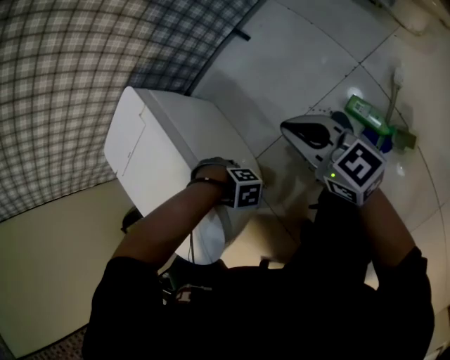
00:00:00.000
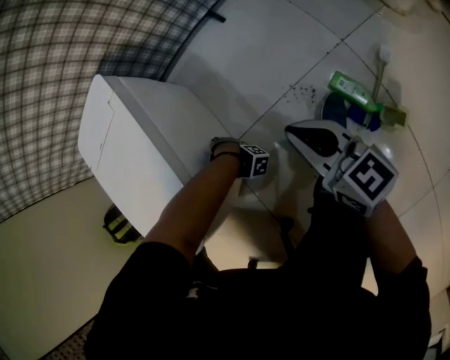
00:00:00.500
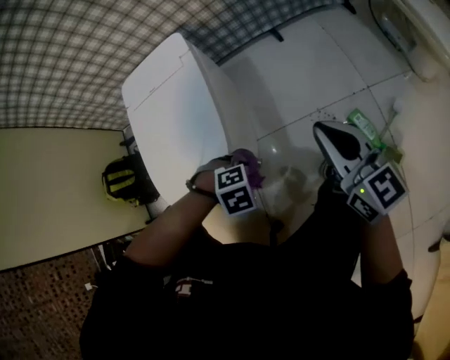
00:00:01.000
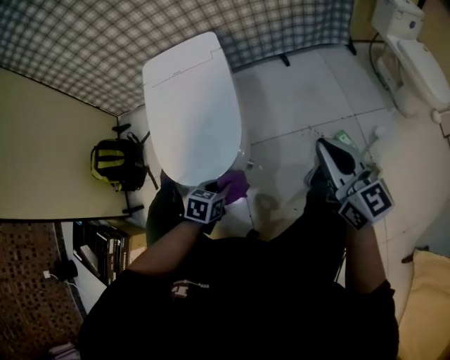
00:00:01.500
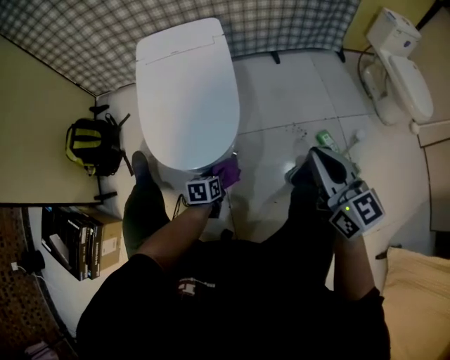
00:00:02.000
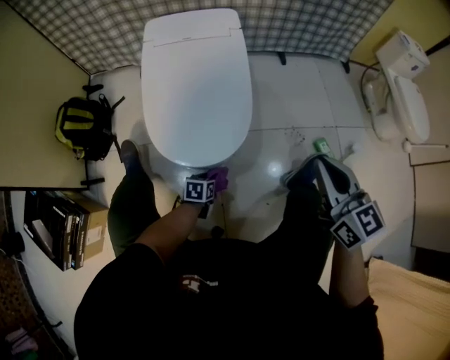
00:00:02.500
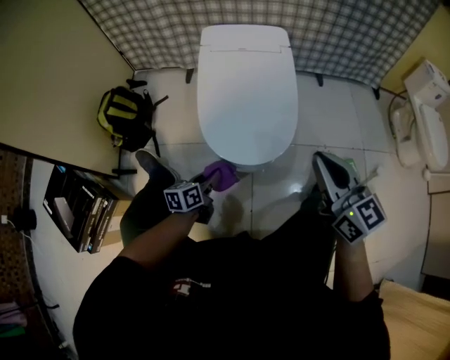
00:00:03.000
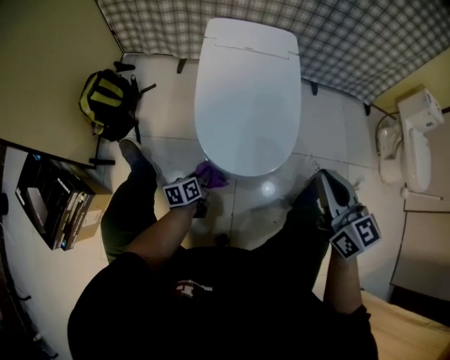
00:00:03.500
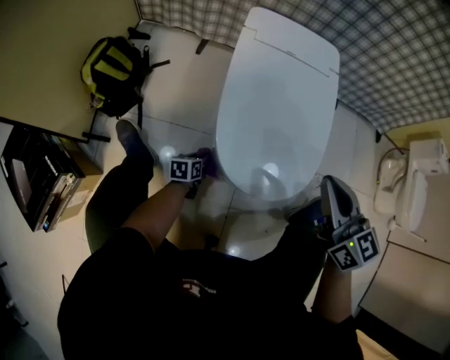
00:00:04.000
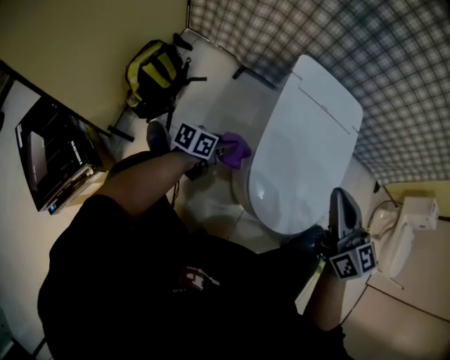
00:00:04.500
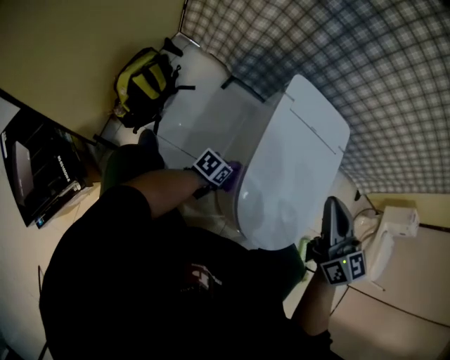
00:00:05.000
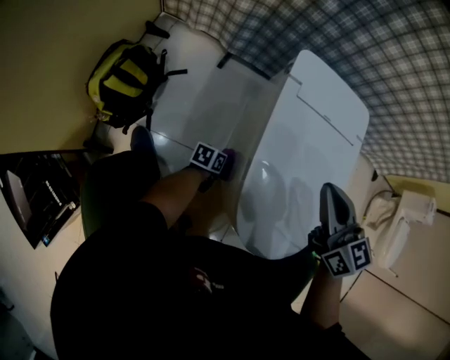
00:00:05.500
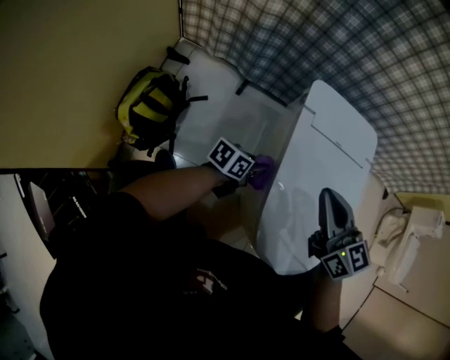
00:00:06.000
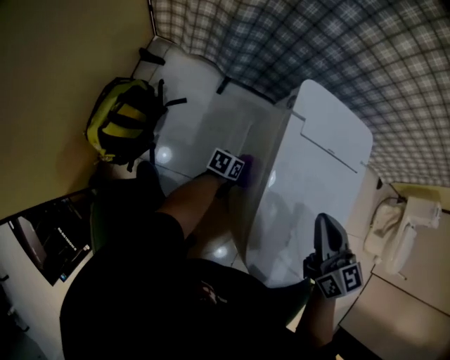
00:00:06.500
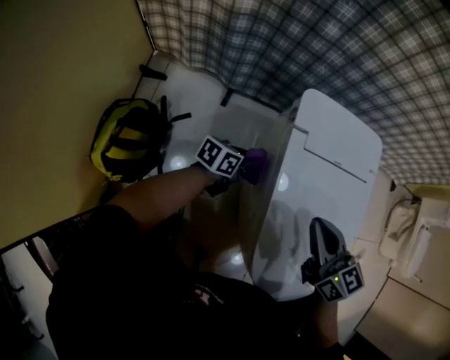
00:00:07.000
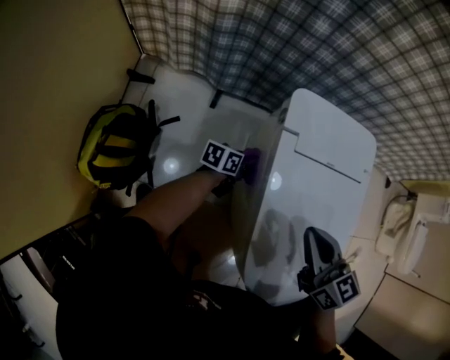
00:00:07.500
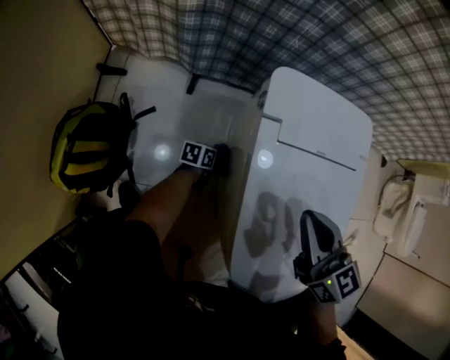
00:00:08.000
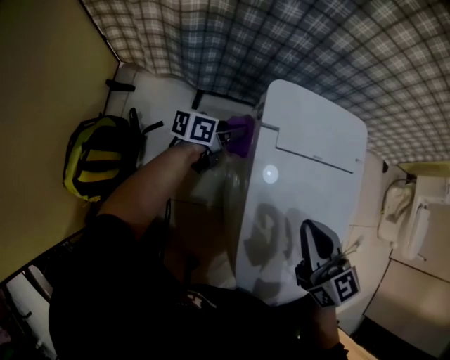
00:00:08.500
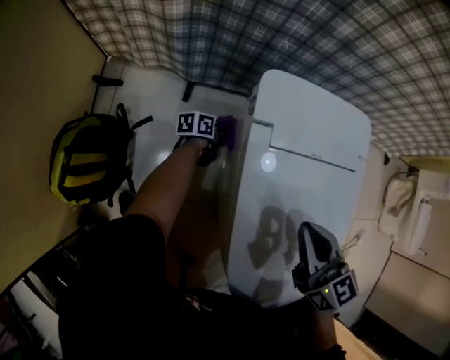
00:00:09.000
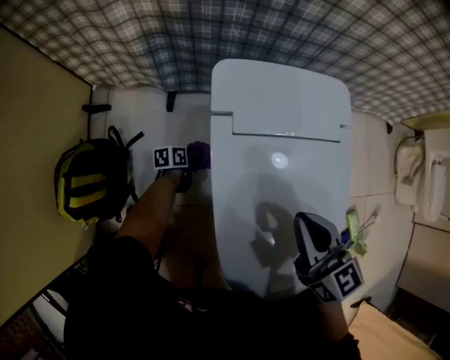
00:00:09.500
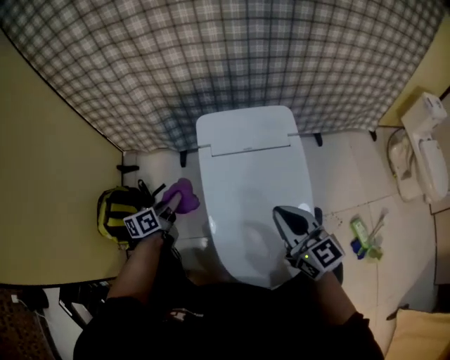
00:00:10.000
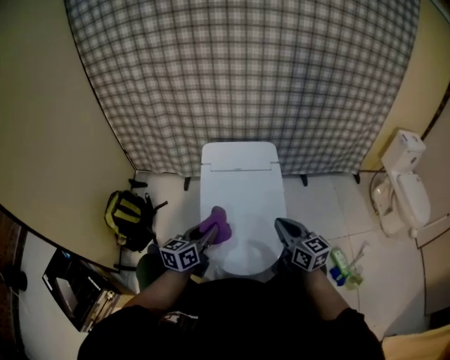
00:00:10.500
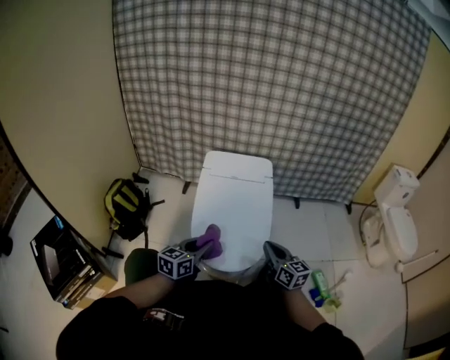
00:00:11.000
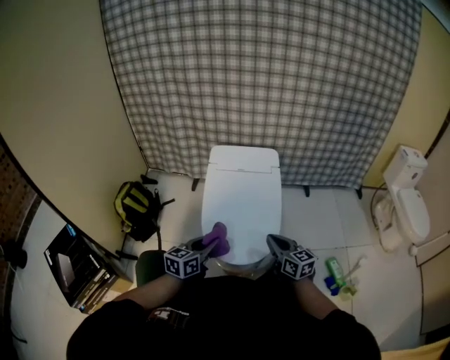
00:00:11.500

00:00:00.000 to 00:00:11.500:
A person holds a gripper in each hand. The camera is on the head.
00:00:00.000 to 00:00:02.000: The right gripper shifts by some 35 cm. Meanwhile the left gripper moves up and down over approximately 20 cm, changing direction 2 times, and turns by some 140 degrees.
00:00:02.000 to 00:00:04.000: The left gripper is displaced to the left, downward and forward by approximately 25 cm. Meanwhile the right gripper is displaced to the left and forward by about 25 cm.
00:00:04.000 to 00:00:06.000: The right gripper travels to the left and forward by about 30 cm. Meanwhile the left gripper travels forward and upward by about 25 cm, and rotates roughly 30 degrees.
00:00:06.000 to 00:00:07.500: The left gripper swings up and down, about 15 cm each way, with 2 reversals, while the right gripper goes approximately 5 cm downward.
00:00:07.500 to 00:00:09.500: The right gripper is displaced to the right by about 5 cm, while the left gripper goes up and down, roughly 25 cm each way, reversing 2 times, and swivels roughly 20 degrees.
00:00:09.500 to 00:00:11.500: The right gripper is displaced backward and to the right by some 30 cm. The left gripper is displaced backward, upward and to the right by some 60 cm, and rotates roughly 50 degrees.

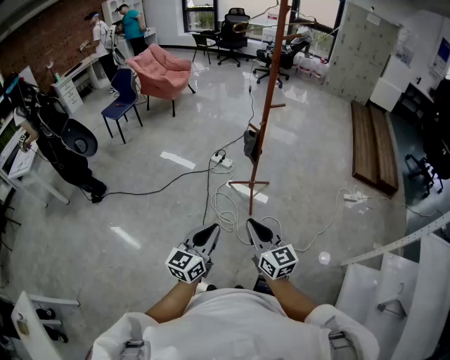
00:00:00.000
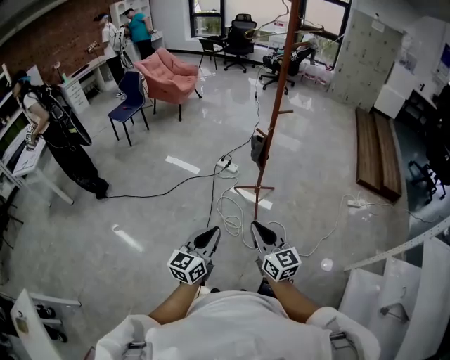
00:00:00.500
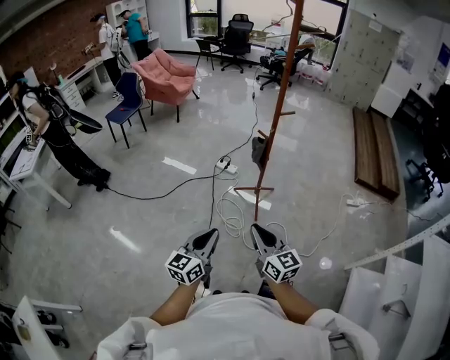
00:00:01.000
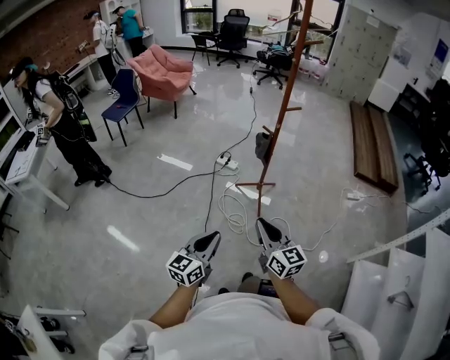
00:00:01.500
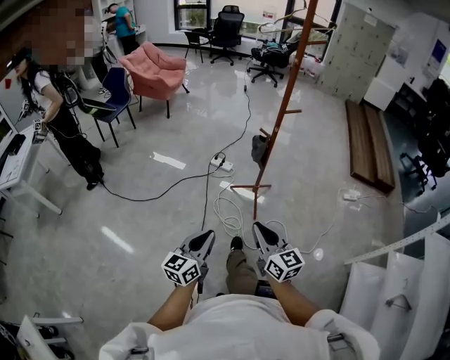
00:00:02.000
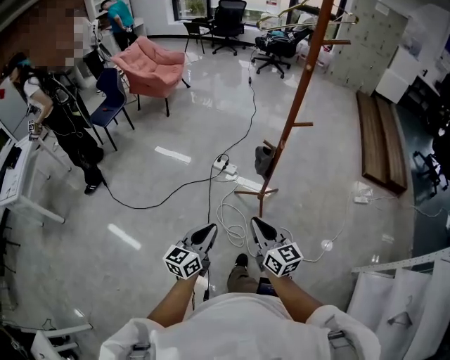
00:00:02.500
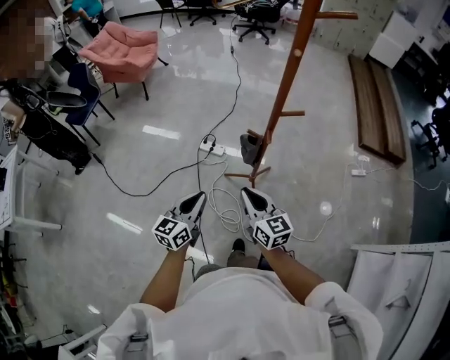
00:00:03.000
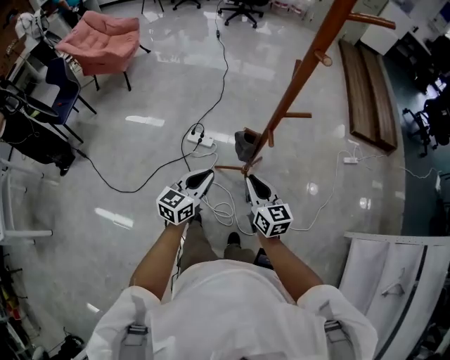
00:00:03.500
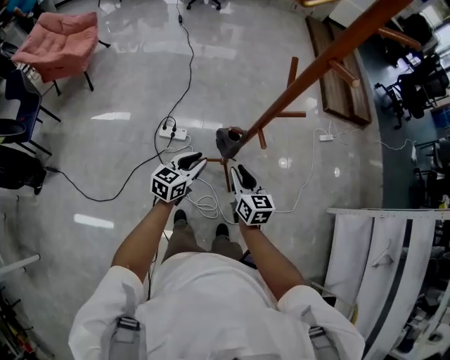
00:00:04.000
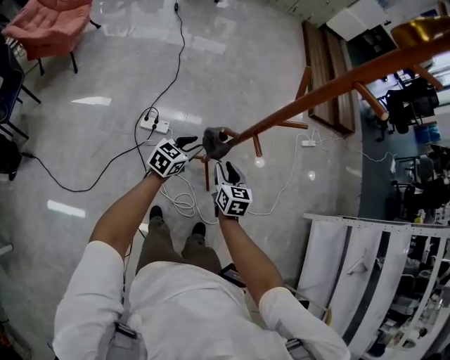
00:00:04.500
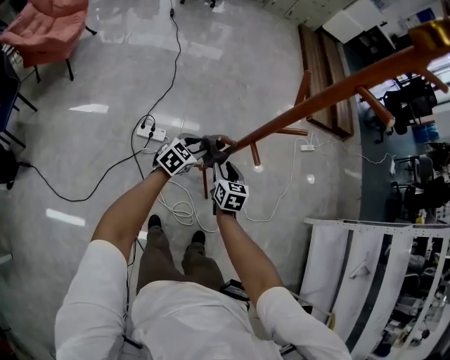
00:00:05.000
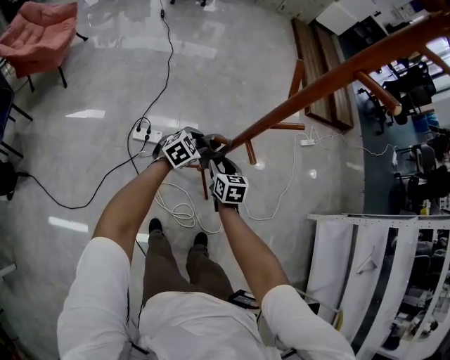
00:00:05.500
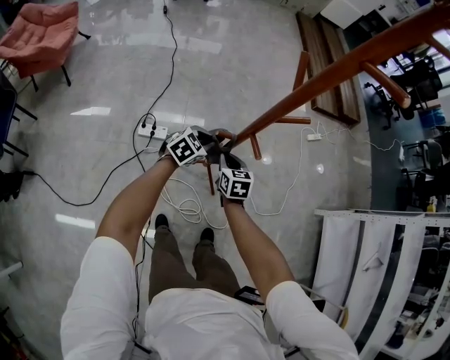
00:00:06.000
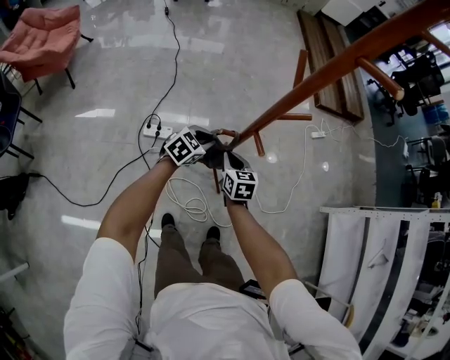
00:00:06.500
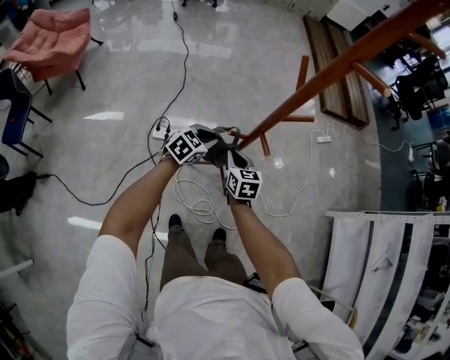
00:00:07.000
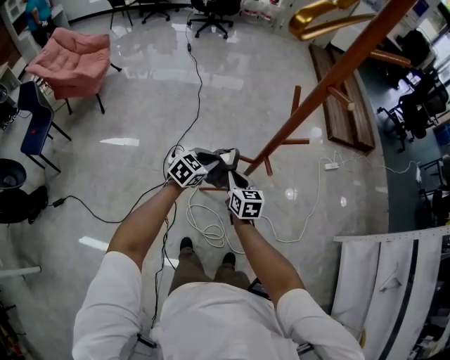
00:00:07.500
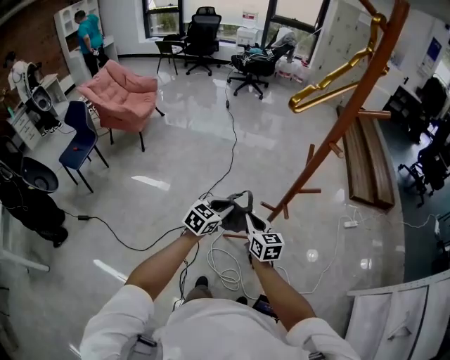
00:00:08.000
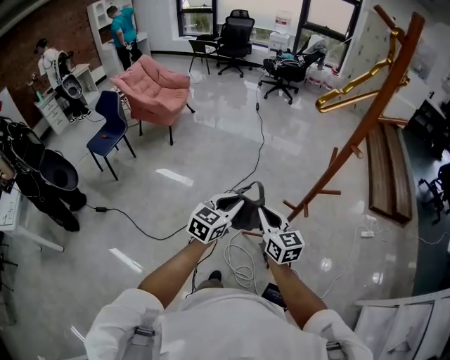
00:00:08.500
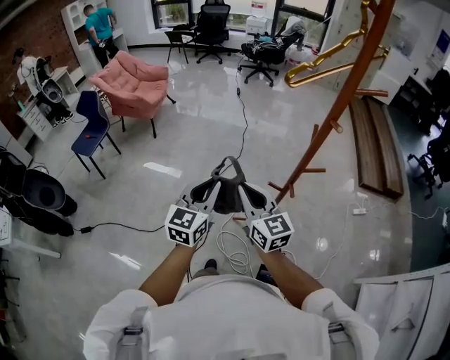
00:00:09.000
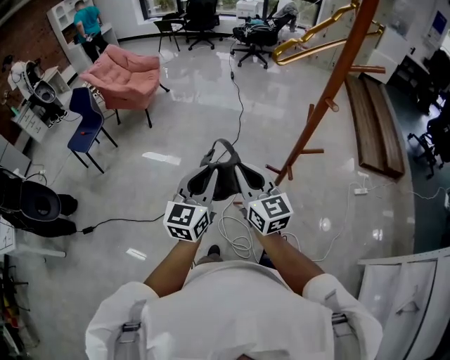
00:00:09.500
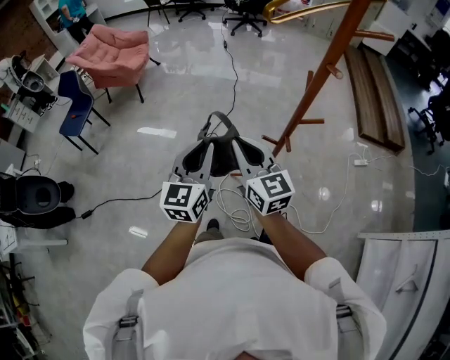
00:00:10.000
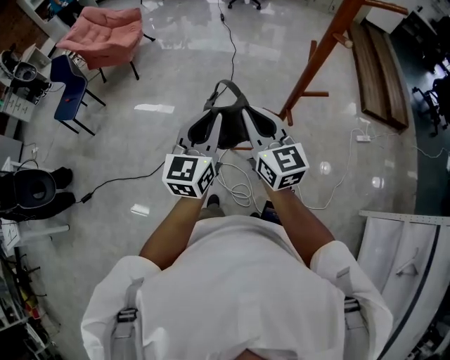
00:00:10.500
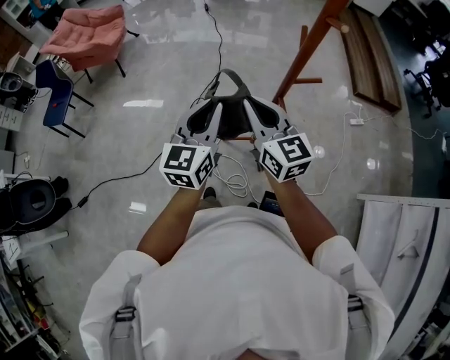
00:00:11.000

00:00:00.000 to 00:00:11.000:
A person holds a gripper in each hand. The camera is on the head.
00:00:00.000 to 00:00:02.000: The right gripper shifts roughly 10 cm to the left and forward; the left gripper goes some 15 cm to the left, downward and forward.
00:00:02.000 to 00:00:03.500: Both grippers are carried forward, about 50 cm. The left gripper rotates roughly 20 degrees.
00:00:03.500 to 00:00:05.500: The left gripper goes about 30 cm forward and downward, swivels some 50 degrees, and opens up. Meanwhile the right gripper travels downward and forward by roughly 25 cm, turns by approximately 30 degrees, and opens up.
00:00:05.500 to 00:00:07.500: The right gripper shifts roughly 15 cm upward and to the left, and closes. Meanwhile the left gripper heads upward and backward, covering approximately 15 cm, and closes its fingers.
00:00:07.500 to 00:00:09.000: The grippers both shift upward by approximately 30 cm. The right gripper swivels about 40 degrees, while the left gripper turns by approximately 50 degrees.
00:00:09.000 to 00:00:11.000: The grippers both shift to the right by about 10 cm.

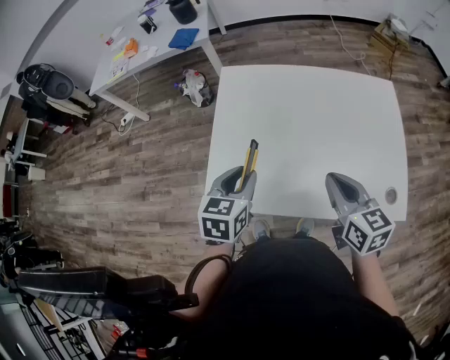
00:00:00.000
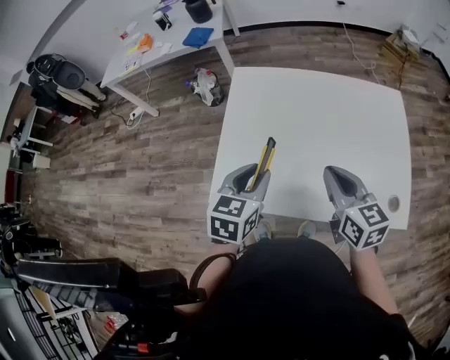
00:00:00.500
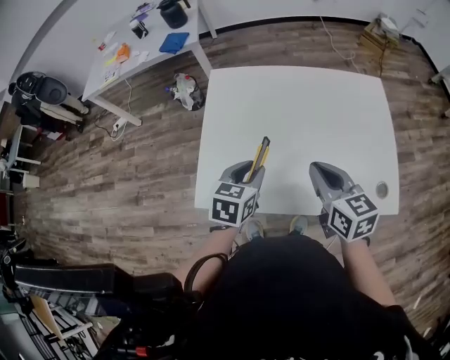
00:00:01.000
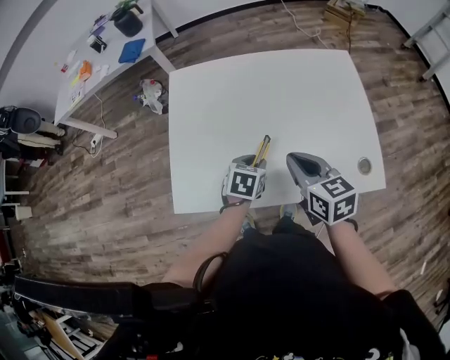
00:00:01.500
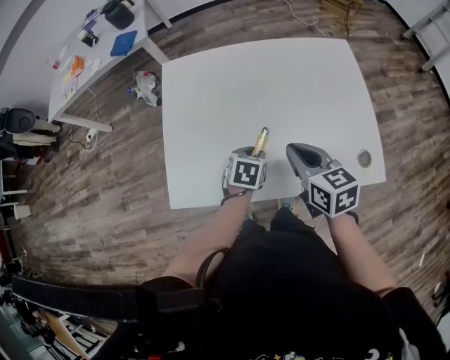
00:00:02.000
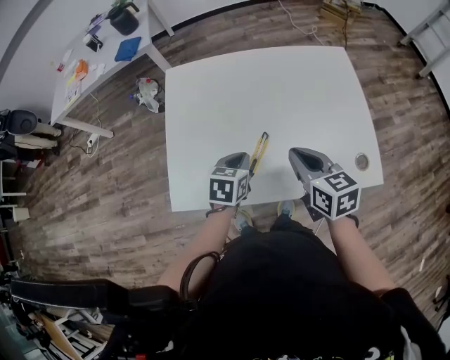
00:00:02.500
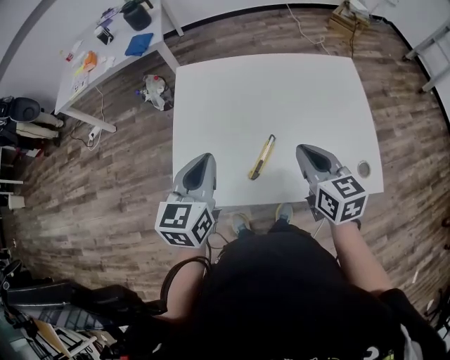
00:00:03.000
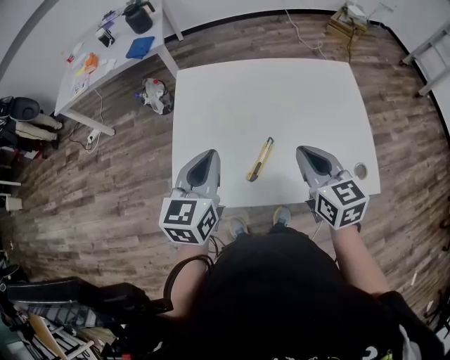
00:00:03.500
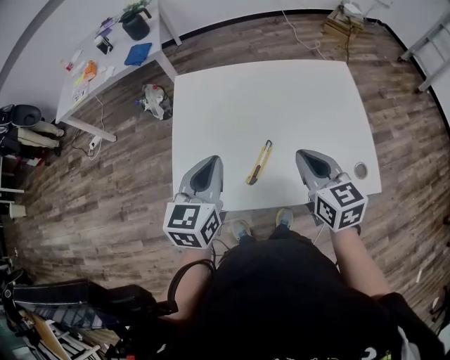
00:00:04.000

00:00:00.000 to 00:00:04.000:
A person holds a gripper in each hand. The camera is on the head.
00:00:00.000 to 00:00:02.000: The left gripper is displaced downward and to the right by some 25 cm, and rotates about 30 degrees; the right gripper goes about 5 cm downward.
00:00:02.000 to 00:00:04.000: The right gripper moves upward, approximately 5 cm; the left gripper heads upward and to the left, covering roughly 25 cm, angles its fingers upward, by approximately 40 degrees, and closes up.
